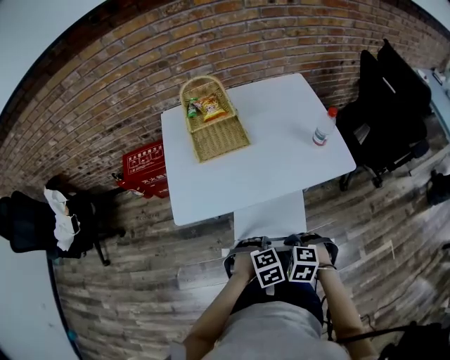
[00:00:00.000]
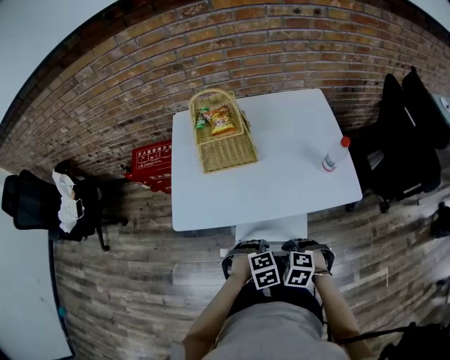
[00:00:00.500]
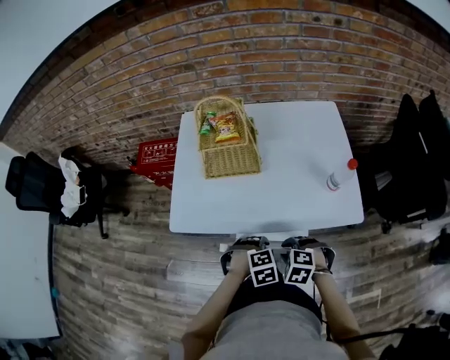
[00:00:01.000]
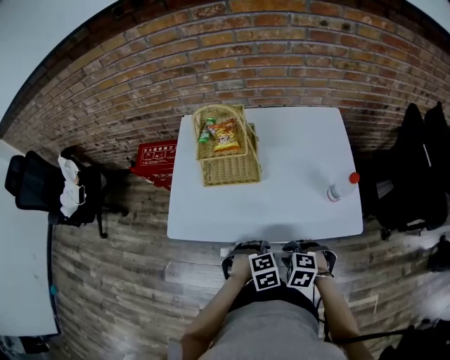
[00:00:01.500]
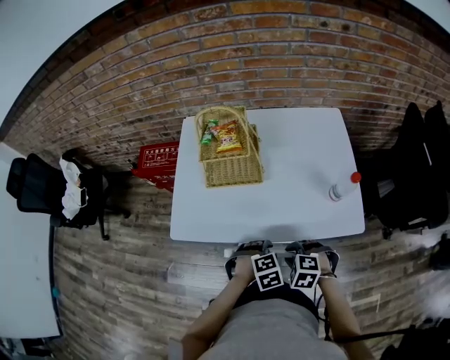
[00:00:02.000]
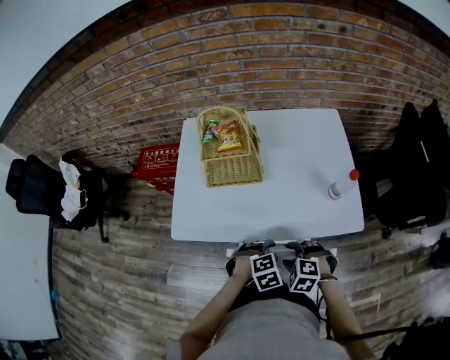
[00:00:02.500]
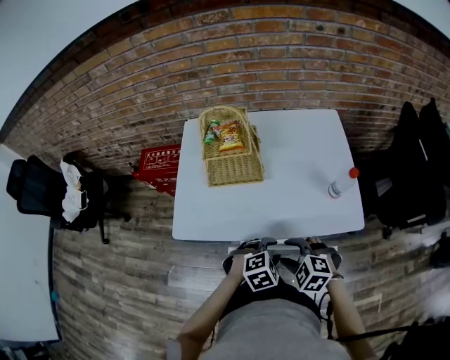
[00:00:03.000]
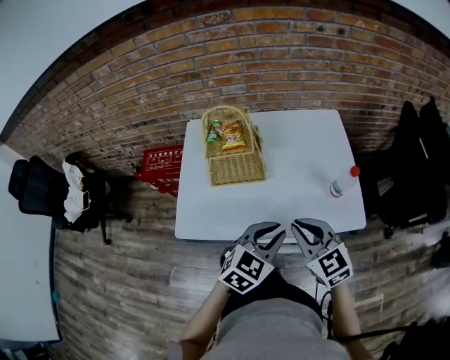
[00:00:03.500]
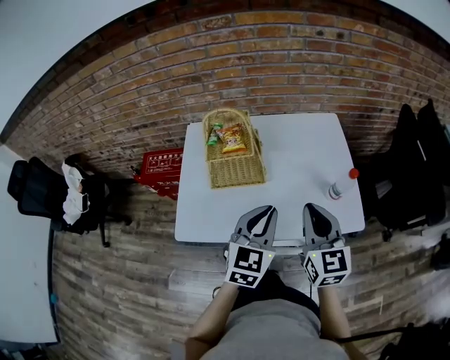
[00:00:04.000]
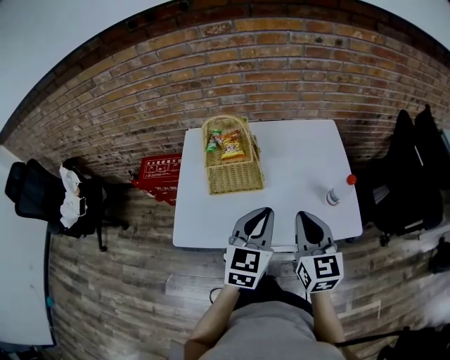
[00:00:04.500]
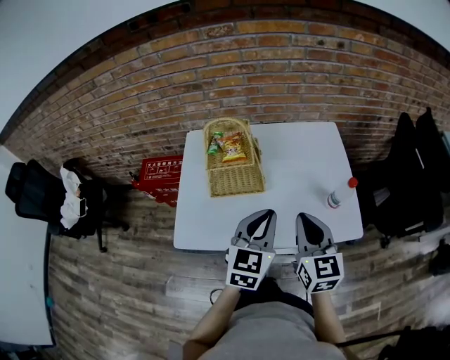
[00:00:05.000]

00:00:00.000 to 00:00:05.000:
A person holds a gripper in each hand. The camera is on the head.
00:00:00.000 to 00:00:02.500: The left gripper moves roughly 15 cm; the right gripper moves about 15 cm, and opens up.
00:00:02.500 to 00:00:05.000: Both grippers move upward and forward, roughly 25 cm. The right gripper tips its fingers upward by about 50 degrees, and closes up. The left gripper tips its fingers upward by roughly 50 degrees, and closes its fingers.

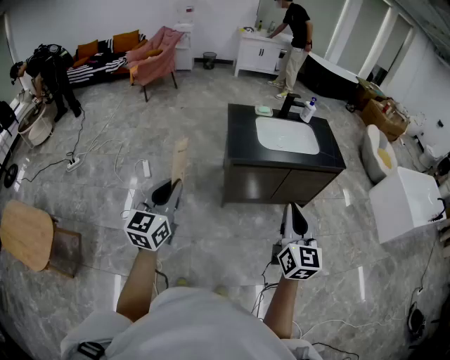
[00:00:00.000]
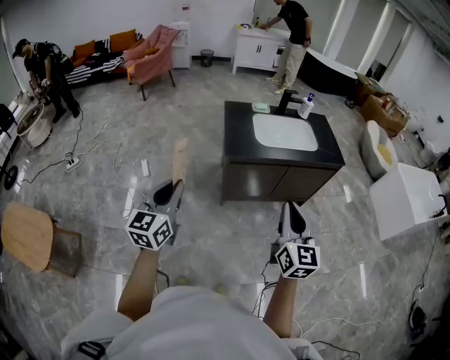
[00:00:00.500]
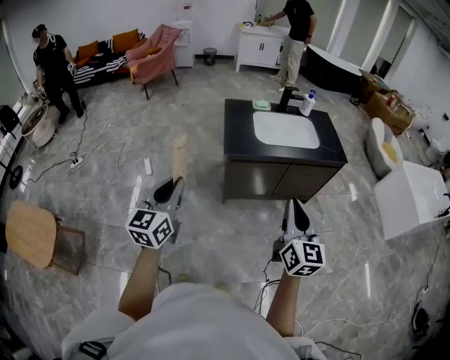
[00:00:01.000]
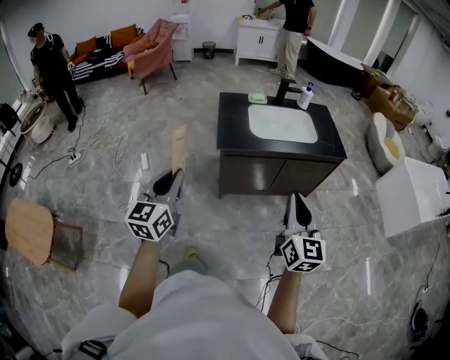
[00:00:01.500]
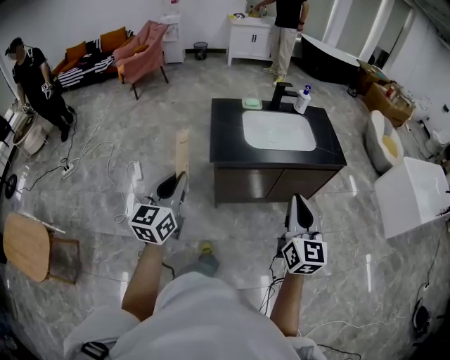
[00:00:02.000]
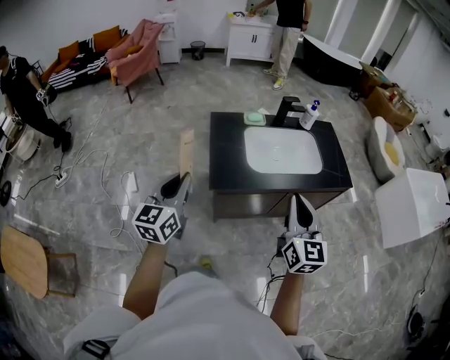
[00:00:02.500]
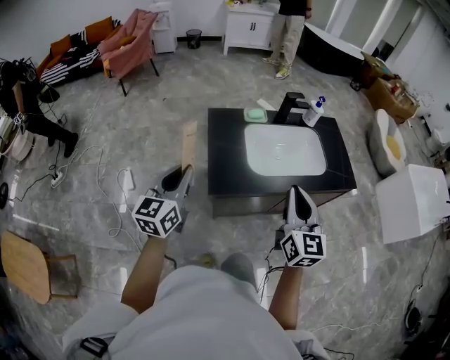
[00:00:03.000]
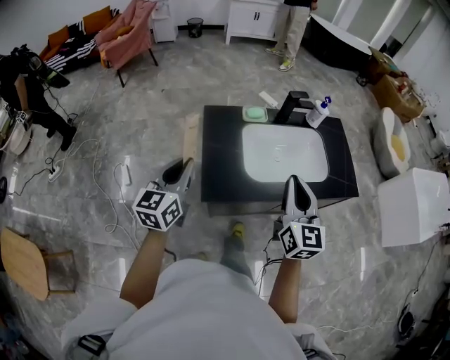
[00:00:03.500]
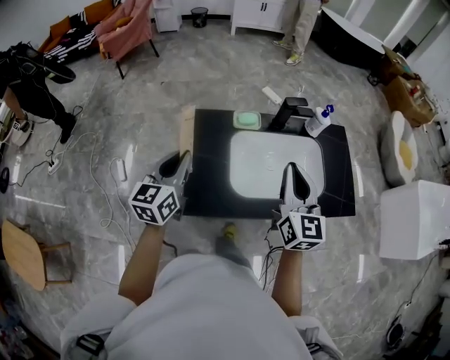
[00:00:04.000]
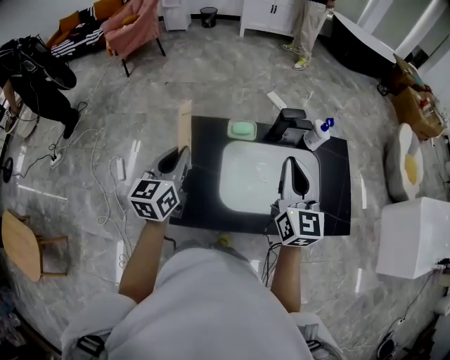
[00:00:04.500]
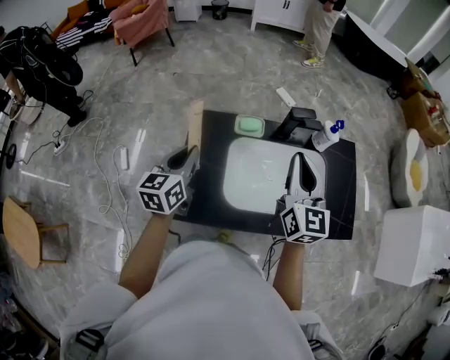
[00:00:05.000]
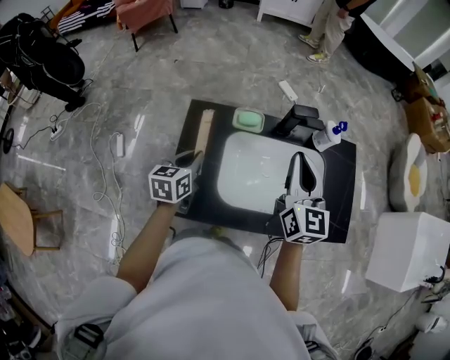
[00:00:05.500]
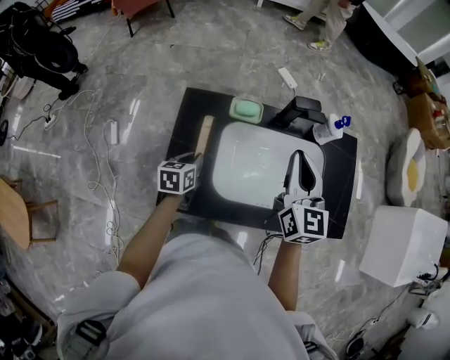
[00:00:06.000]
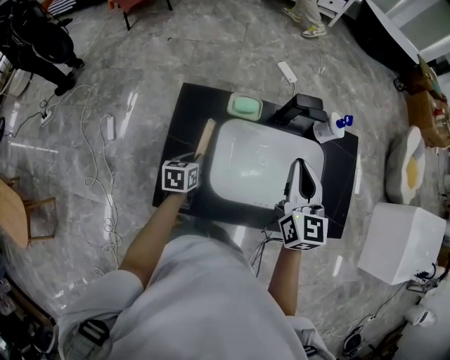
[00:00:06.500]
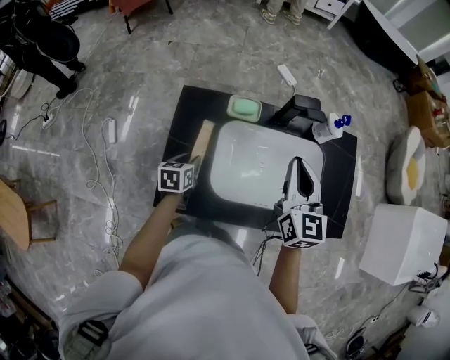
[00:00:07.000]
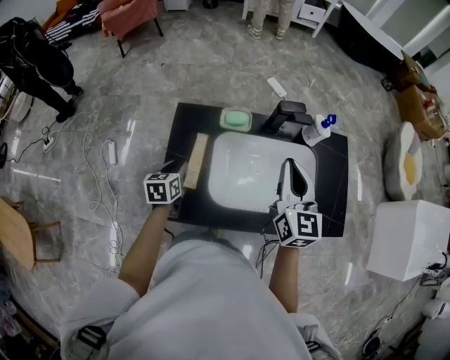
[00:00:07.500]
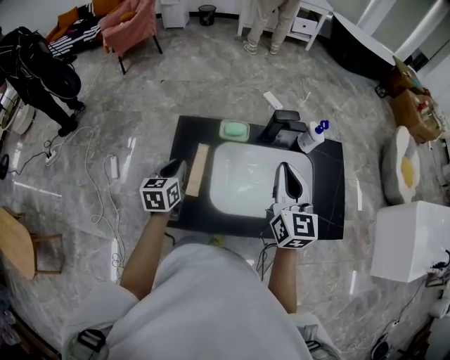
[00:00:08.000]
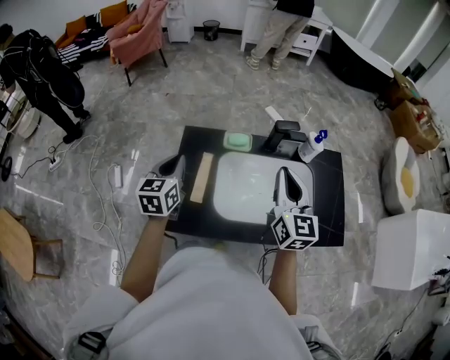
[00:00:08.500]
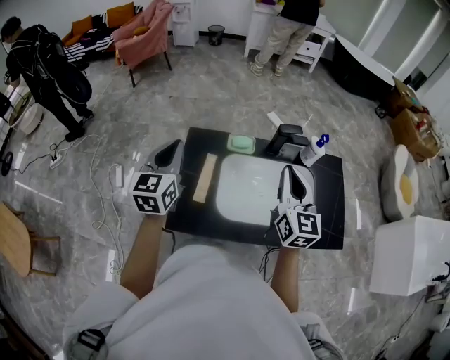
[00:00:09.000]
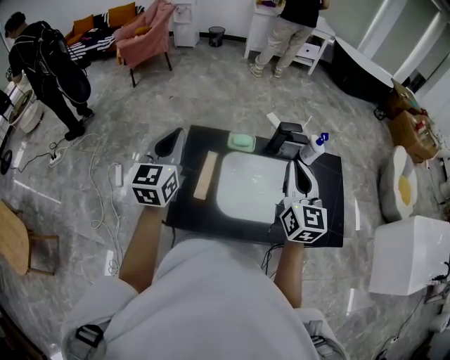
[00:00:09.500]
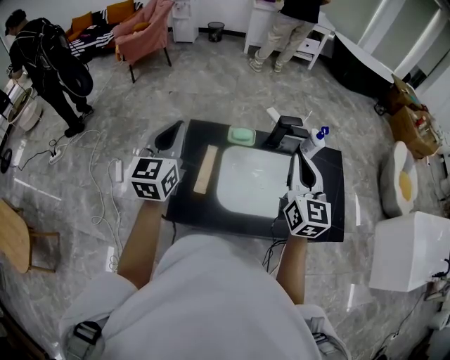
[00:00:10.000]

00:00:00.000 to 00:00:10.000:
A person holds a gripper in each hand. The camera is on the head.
00:00:00.000 to 00:00:02.000: The two grippers go some 20 cm forward and to the right.
00:00:02.000 to 00:00:04.000: The two grippers travel together, forward, roughly 50 cm.
00:00:04.000 to 00:00:06.000: The right gripper goes roughly 15 cm forward. Meanwhile the left gripper is displaced downward by about 25 cm, and tips its fingers downward by some 30 degrees.
00:00:06.000 to 00:00:08.000: The left gripper shifts some 10 cm upward.
00:00:08.000 to 00:00:10.000: The right gripper moves roughly 5 cm, while the left gripper moves upward, approximately 20 cm, and turns by roughly 30 degrees.

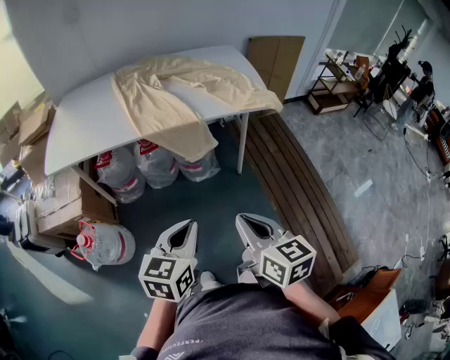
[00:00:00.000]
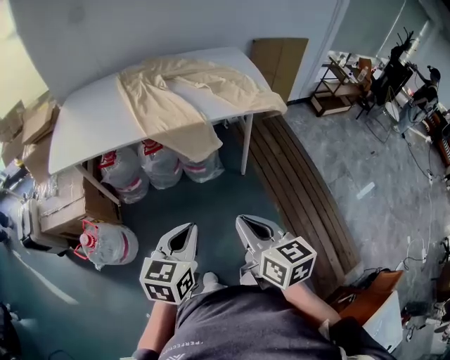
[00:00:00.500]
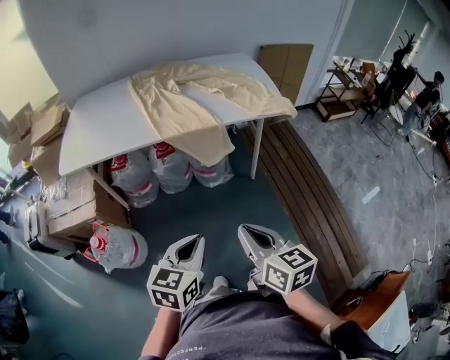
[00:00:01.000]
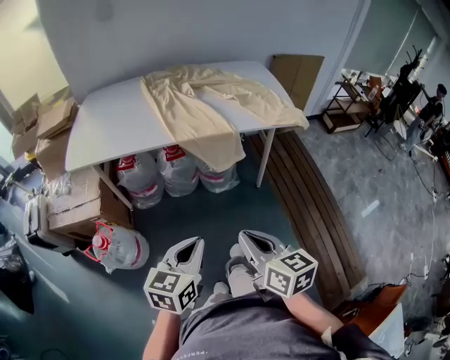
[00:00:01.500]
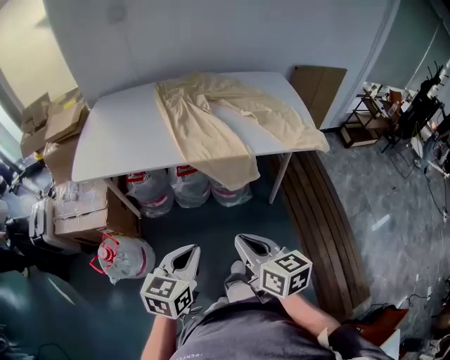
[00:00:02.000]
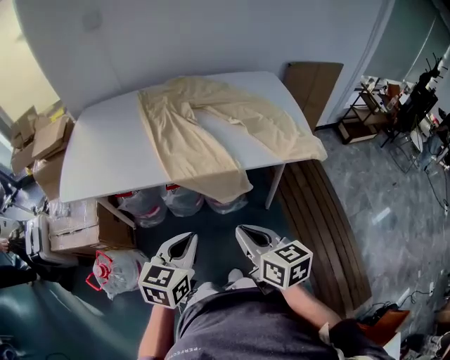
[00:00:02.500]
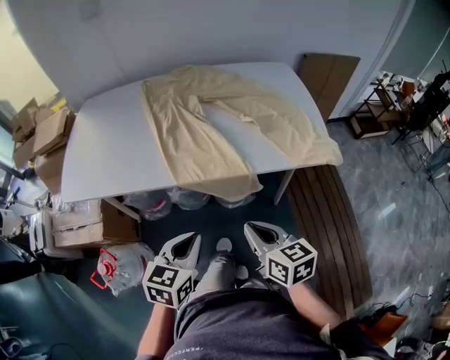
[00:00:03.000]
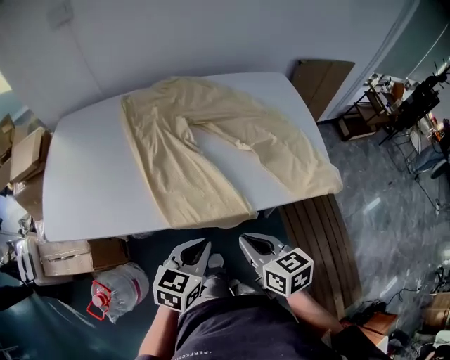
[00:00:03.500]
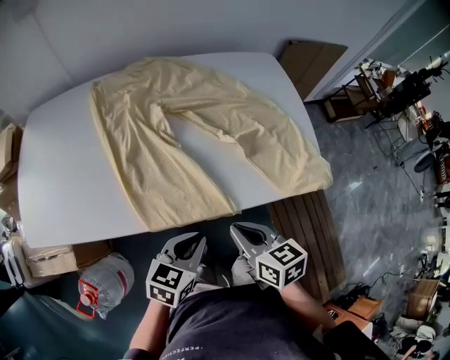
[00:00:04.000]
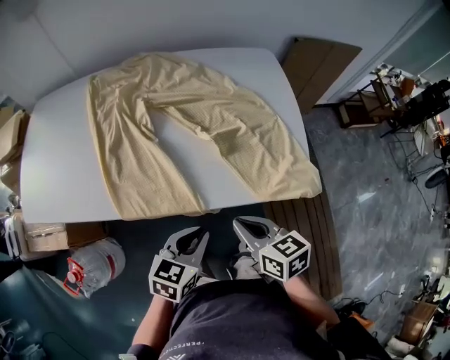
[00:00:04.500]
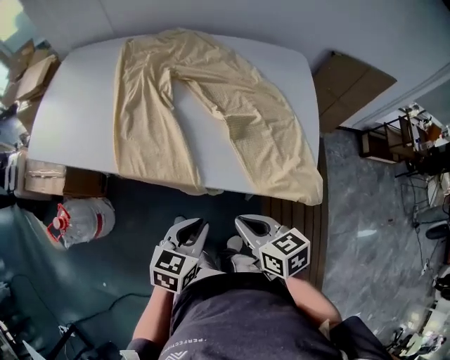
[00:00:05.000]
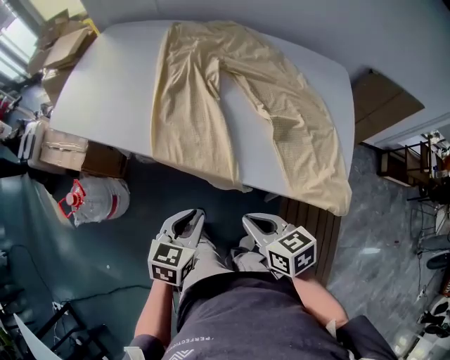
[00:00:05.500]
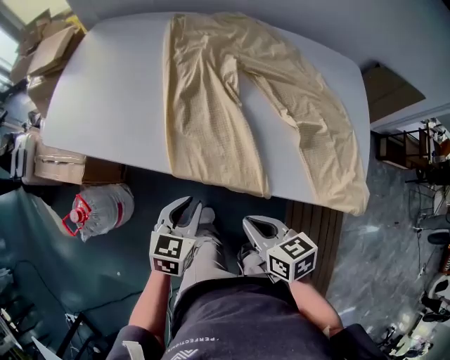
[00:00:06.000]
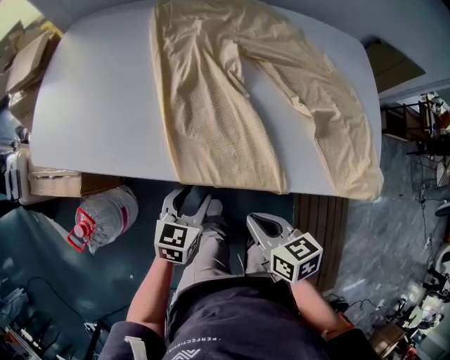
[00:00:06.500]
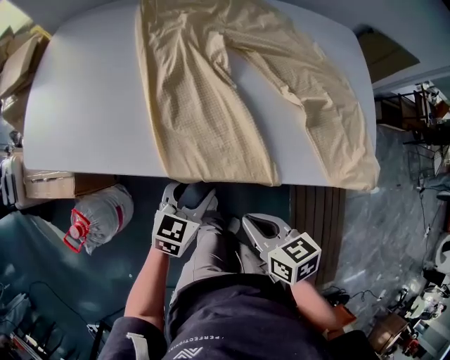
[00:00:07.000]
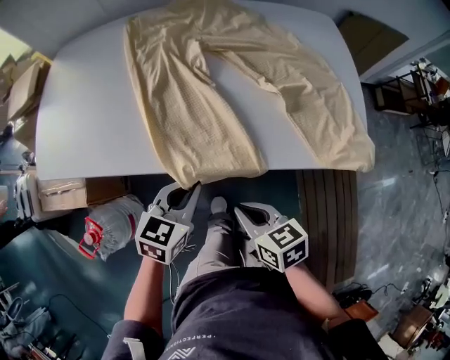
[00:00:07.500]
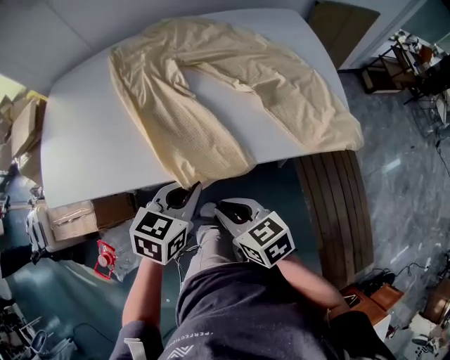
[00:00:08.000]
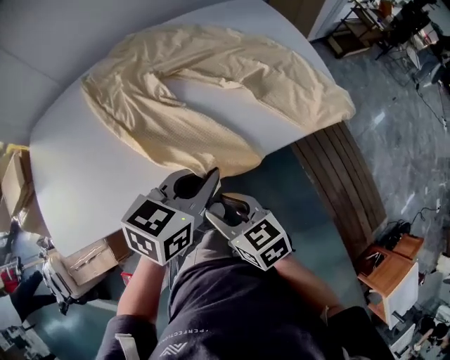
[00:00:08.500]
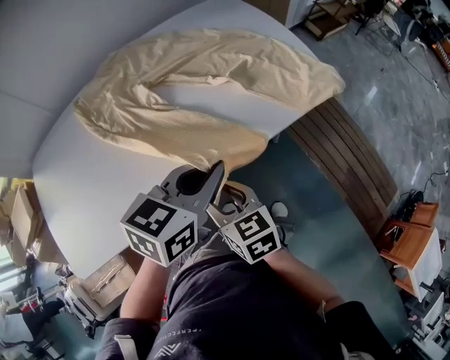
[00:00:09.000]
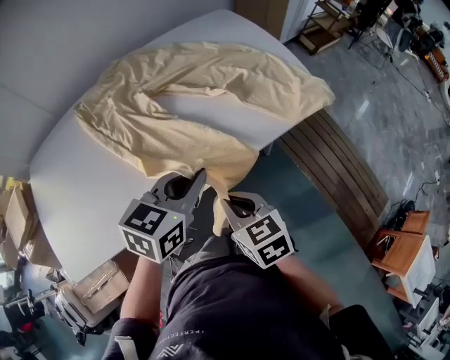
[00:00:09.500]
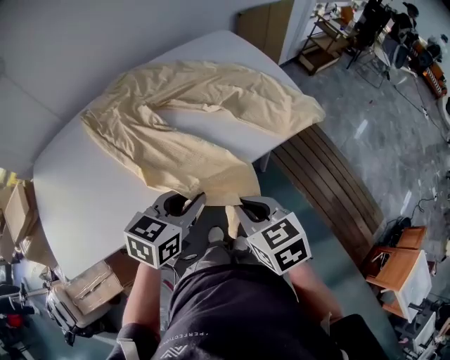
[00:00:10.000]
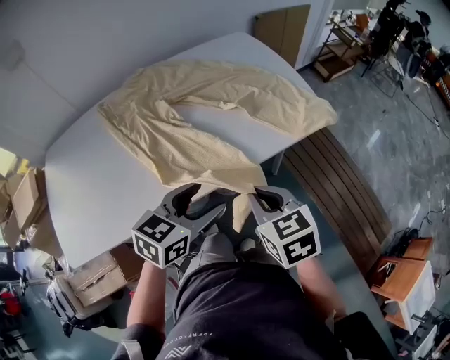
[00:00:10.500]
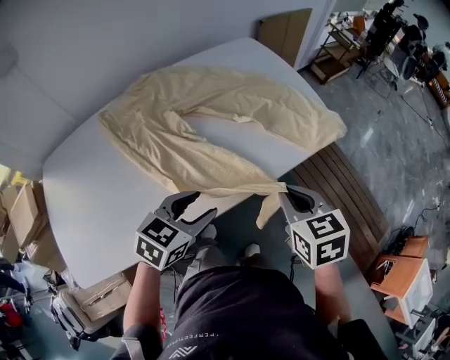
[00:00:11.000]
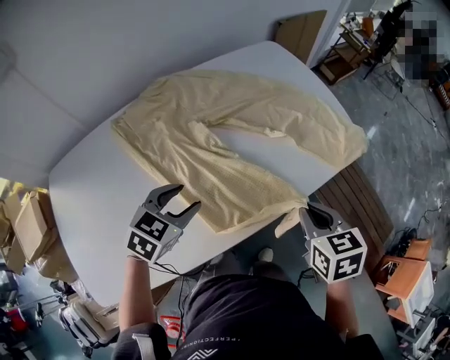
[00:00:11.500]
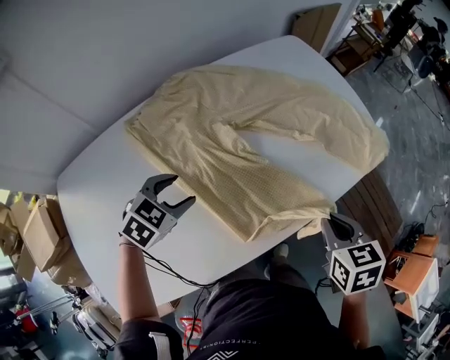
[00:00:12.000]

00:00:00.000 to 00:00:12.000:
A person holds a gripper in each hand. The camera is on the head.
00:00:00.000 to 00:00:02.000: Both grippers move to the left and forward, roughly 15 cm.
00:00:02.000 to 00:00:04.000: The grippers both shift forward by about 30 cm.
00:00:04.000 to 00:00:06.000: The left gripper turns by some 30 degrees. The right gripper rotates about 30 degrees.
00:00:06.000 to 00:00:08.000: The left gripper goes approximately 10 cm upward and to the right, rotates about 30 degrees, and opens and closes again; the right gripper goes some 5 cm to the left.
00:00:08.000 to 00:00:10.000: Both grippers move upward, roughly 5 cm. The right gripper changes its angle by some 30 degrees, and opens and closes again; the left gripper swivels about 20 degrees.
00:00:10.000 to 00:00:12.000: The right gripper heads forward and to the left, covering about 10 cm, and rotates roughly 20 degrees. The left gripper is displaced to the left by approximately 30 cm, rotates approximately 30 degrees, and opens.
